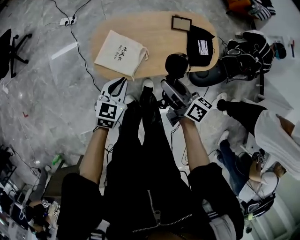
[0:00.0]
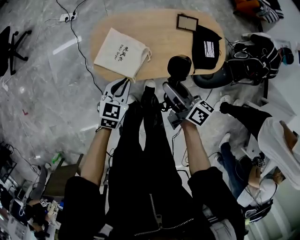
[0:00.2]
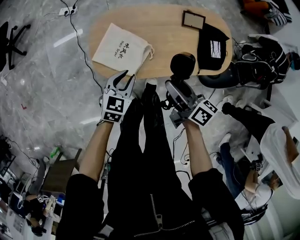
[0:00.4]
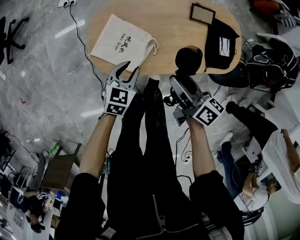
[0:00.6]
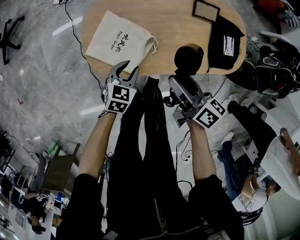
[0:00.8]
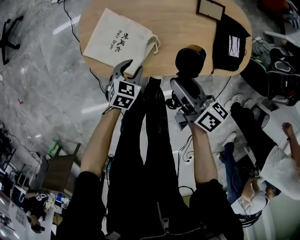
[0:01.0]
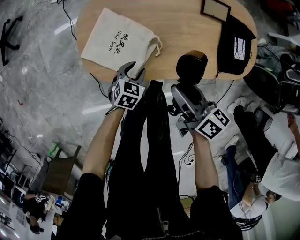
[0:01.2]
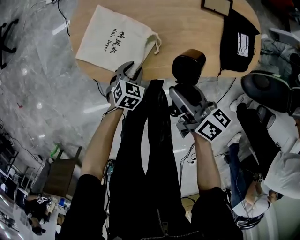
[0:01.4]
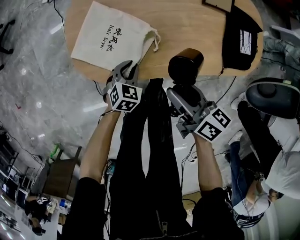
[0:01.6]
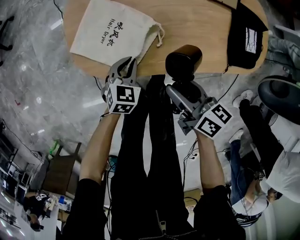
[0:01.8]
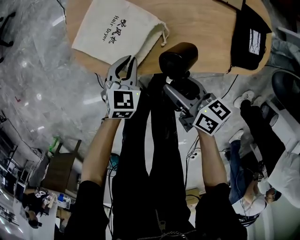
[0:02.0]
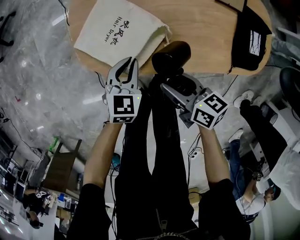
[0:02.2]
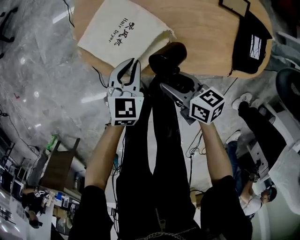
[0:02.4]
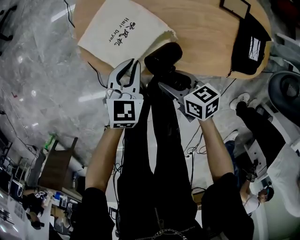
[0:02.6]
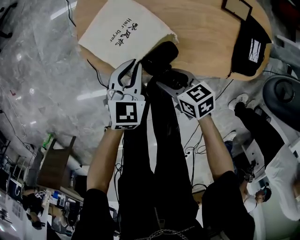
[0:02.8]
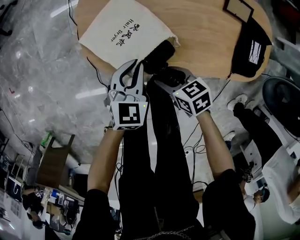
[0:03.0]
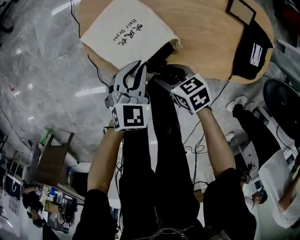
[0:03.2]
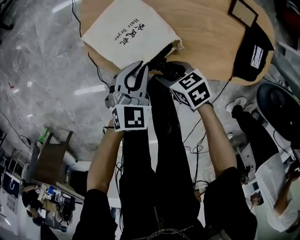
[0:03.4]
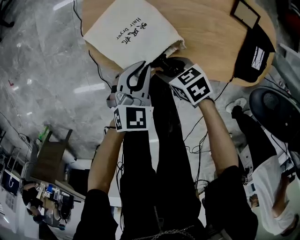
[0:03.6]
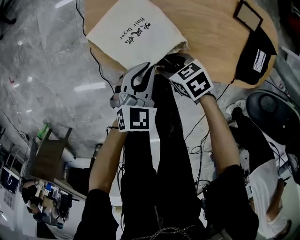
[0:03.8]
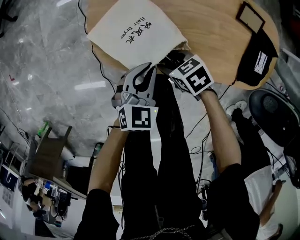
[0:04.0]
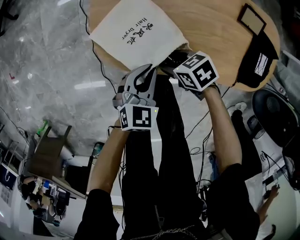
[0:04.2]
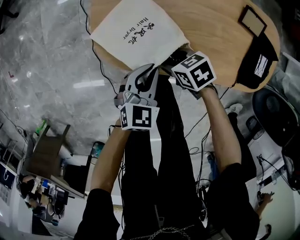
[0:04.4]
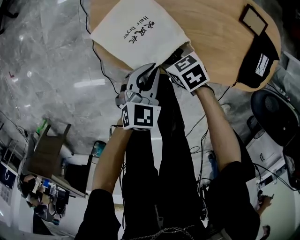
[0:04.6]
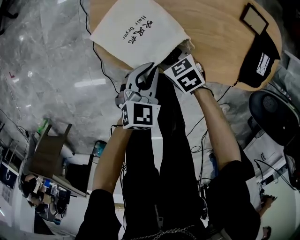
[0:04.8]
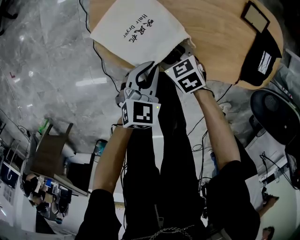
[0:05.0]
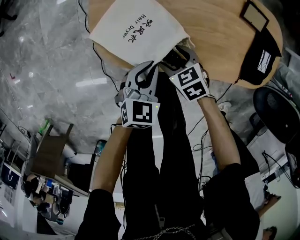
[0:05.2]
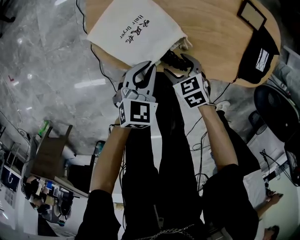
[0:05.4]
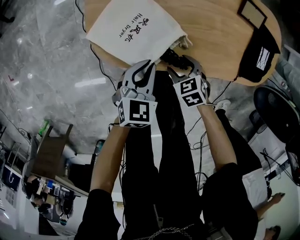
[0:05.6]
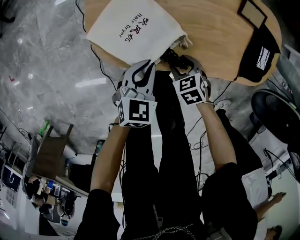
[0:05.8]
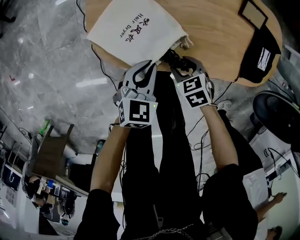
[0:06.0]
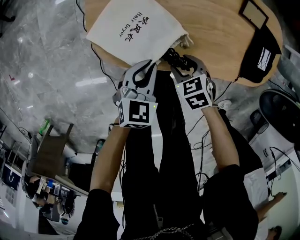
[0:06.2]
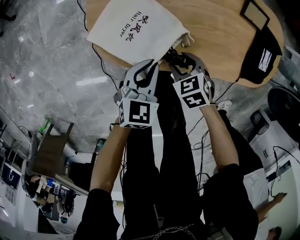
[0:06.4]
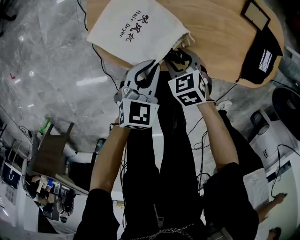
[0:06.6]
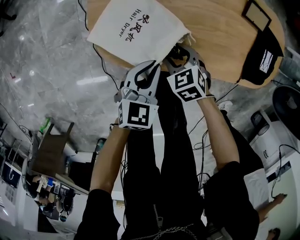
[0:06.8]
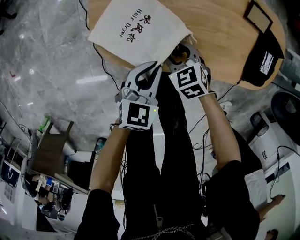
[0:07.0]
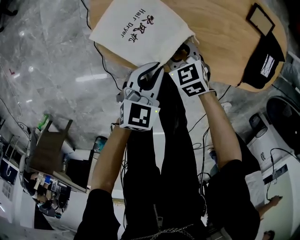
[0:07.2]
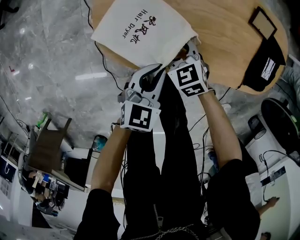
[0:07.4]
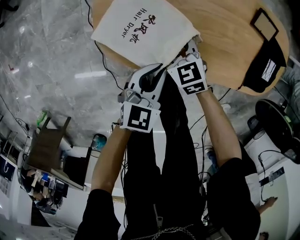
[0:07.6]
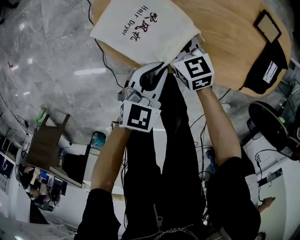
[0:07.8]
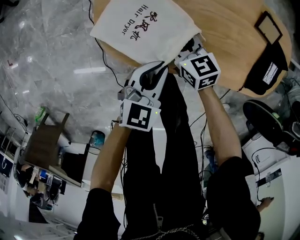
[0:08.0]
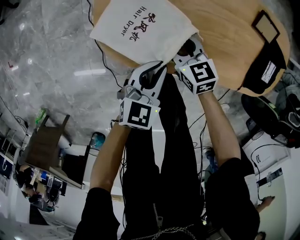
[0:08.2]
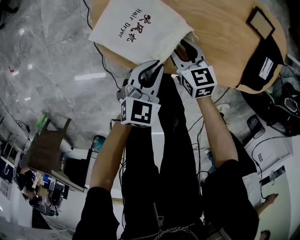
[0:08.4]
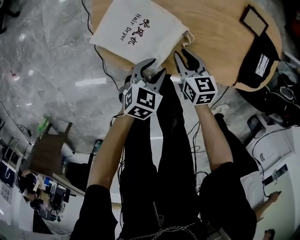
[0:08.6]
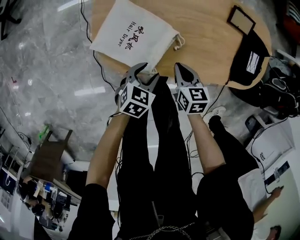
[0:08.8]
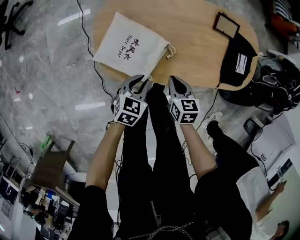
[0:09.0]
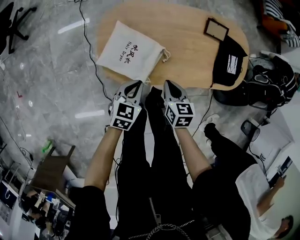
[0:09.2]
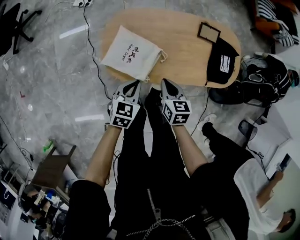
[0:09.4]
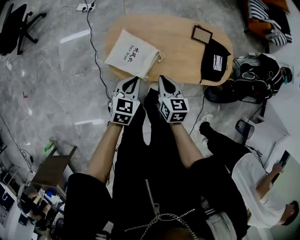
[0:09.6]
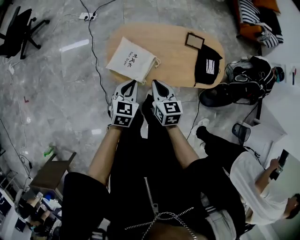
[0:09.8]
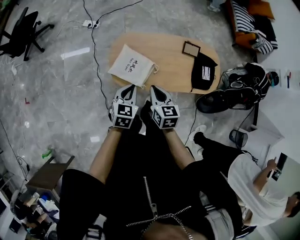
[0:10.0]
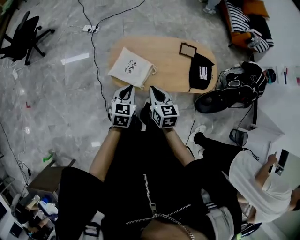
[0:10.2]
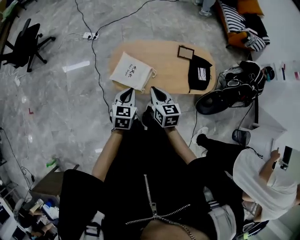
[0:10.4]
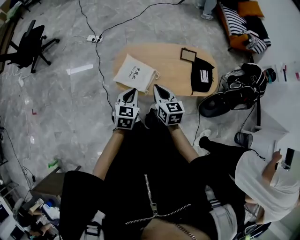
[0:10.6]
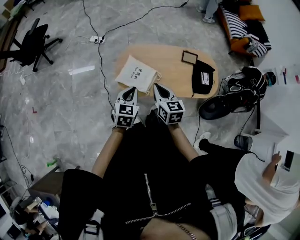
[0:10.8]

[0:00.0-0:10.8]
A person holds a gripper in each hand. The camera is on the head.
0:00.0 to 0:01.6: Both grippers move downward, about 35 cm. The left gripper rotates roughly 30 degrees.
0:01.6 to 0:03.0: The left gripper is displaced upward by roughly 10 cm, and turns by approximately 20 degrees; the right gripper goes some 10 cm downward, and turns by about 50 degrees.
0:03.0 to 0:04.6: The right gripper shifts approximately 10 cm forward.
0:04.6 to 0:06.2: The right gripper is displaced to the right and backward by about 10 cm.
0:06.2 to 0:07.8: The right gripper goes roughly 15 cm forward and to the left, and points its fingers approximately 30 degrees further upward.
0:07.8 to 0:09.2: The left gripper travels upward by some 10 cm, and opens, then closes once more; the right gripper travels upward, backward and to the right by approximately 20 cm, changes its angle by approximately 30 degrees, and closes.
0:09.2 to 0:10.8: The two grippers go some 25 cm upward. The right gripper rotates about 20 degrees.

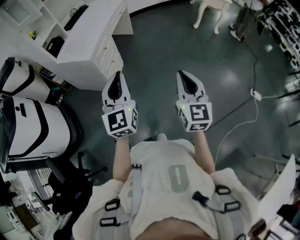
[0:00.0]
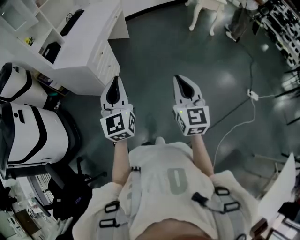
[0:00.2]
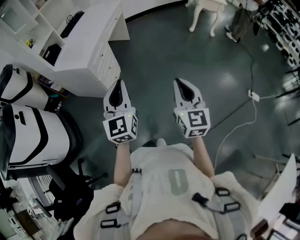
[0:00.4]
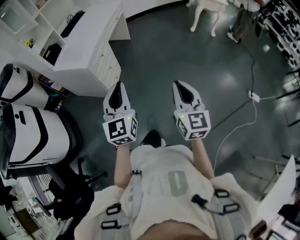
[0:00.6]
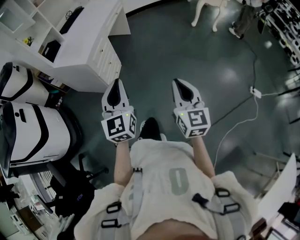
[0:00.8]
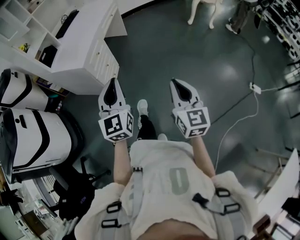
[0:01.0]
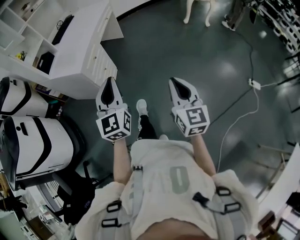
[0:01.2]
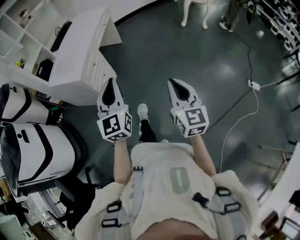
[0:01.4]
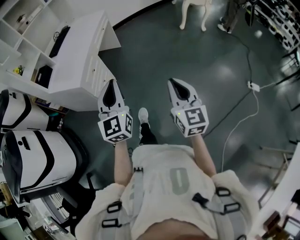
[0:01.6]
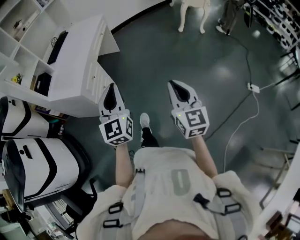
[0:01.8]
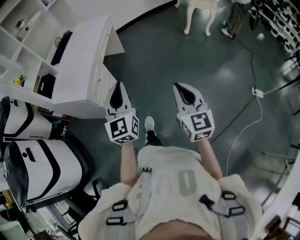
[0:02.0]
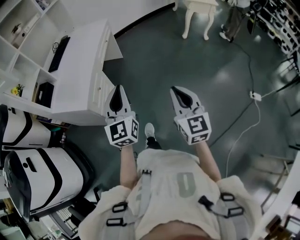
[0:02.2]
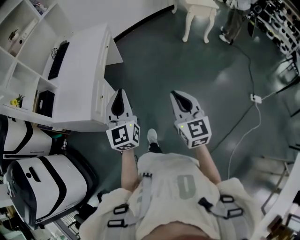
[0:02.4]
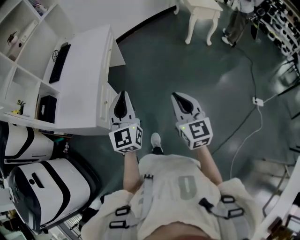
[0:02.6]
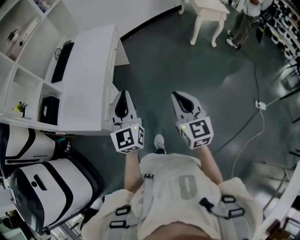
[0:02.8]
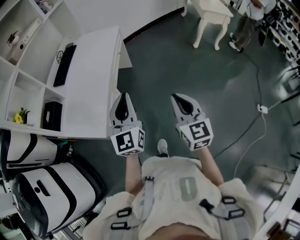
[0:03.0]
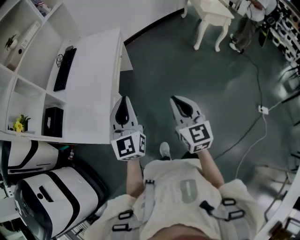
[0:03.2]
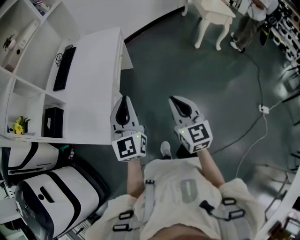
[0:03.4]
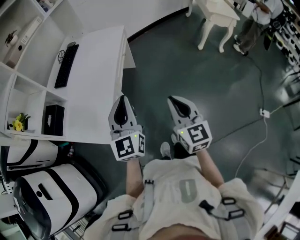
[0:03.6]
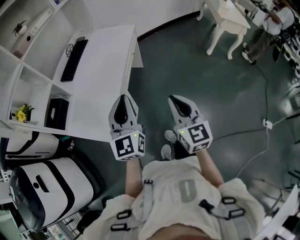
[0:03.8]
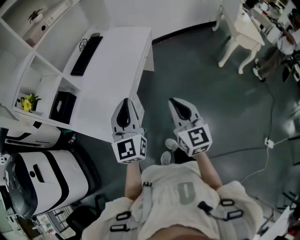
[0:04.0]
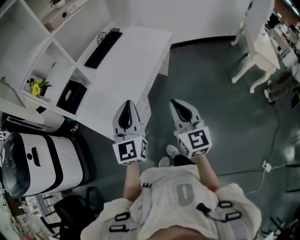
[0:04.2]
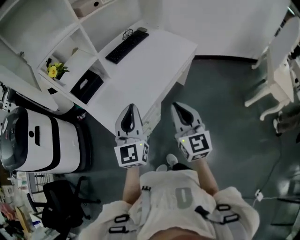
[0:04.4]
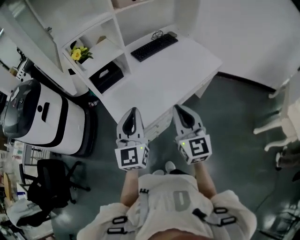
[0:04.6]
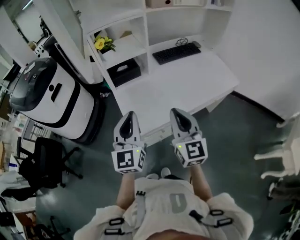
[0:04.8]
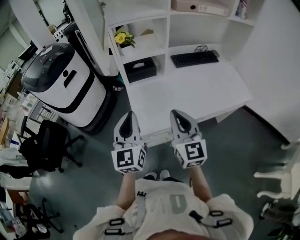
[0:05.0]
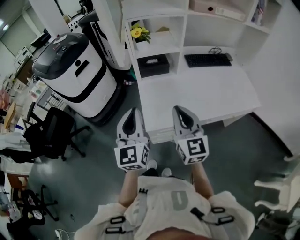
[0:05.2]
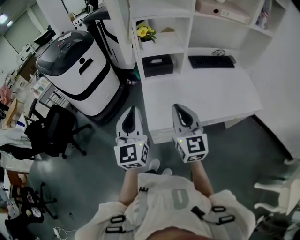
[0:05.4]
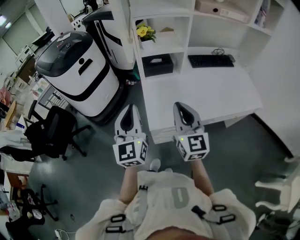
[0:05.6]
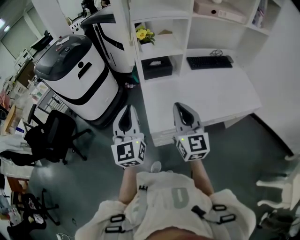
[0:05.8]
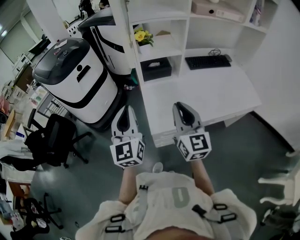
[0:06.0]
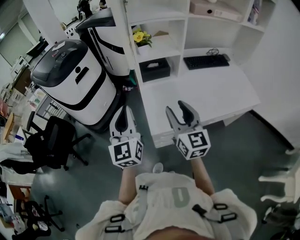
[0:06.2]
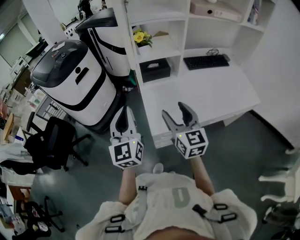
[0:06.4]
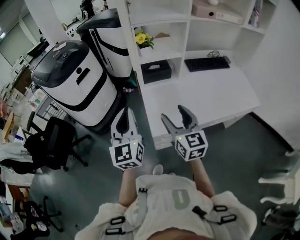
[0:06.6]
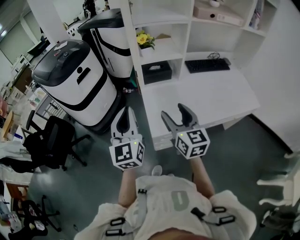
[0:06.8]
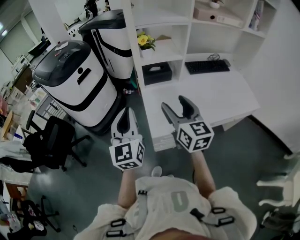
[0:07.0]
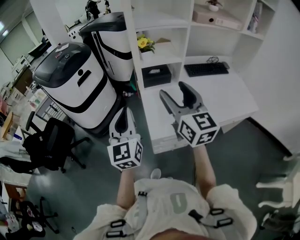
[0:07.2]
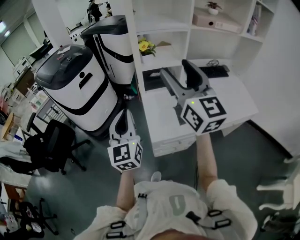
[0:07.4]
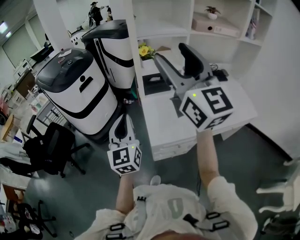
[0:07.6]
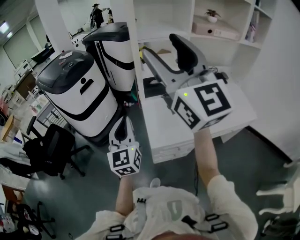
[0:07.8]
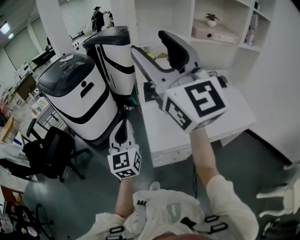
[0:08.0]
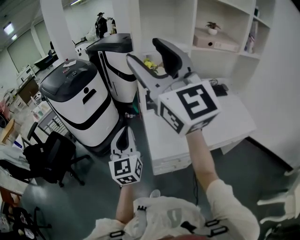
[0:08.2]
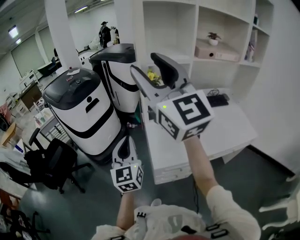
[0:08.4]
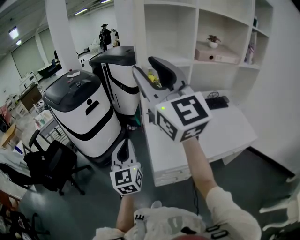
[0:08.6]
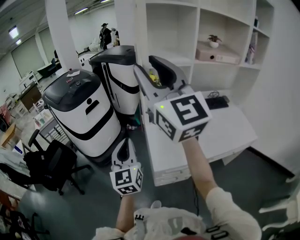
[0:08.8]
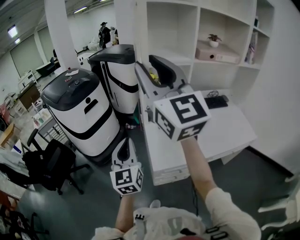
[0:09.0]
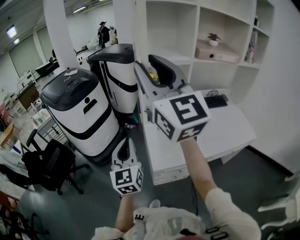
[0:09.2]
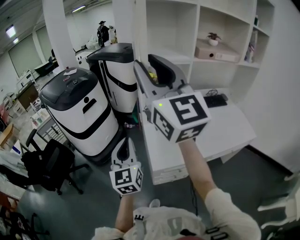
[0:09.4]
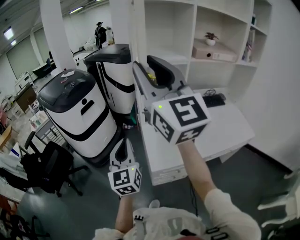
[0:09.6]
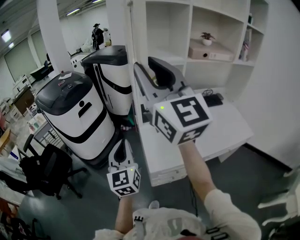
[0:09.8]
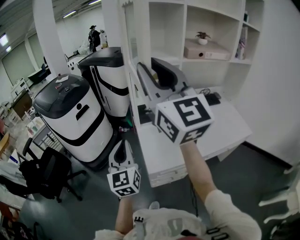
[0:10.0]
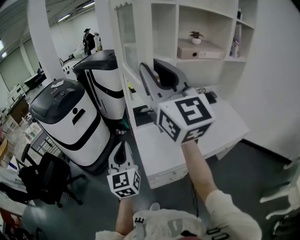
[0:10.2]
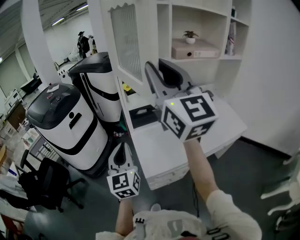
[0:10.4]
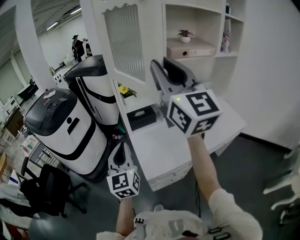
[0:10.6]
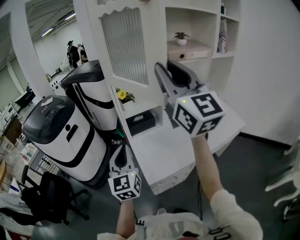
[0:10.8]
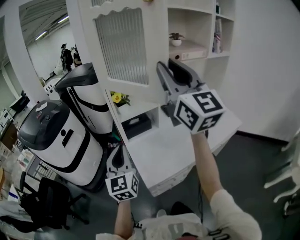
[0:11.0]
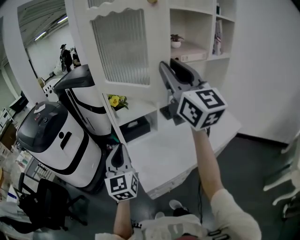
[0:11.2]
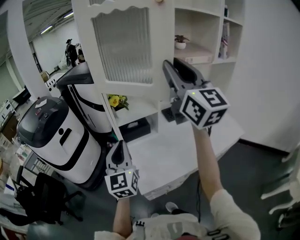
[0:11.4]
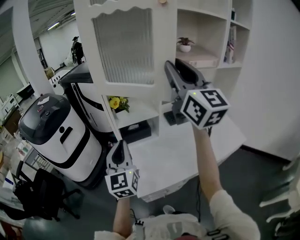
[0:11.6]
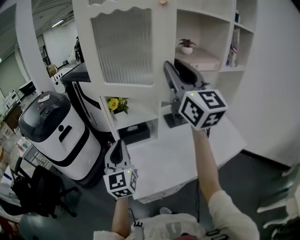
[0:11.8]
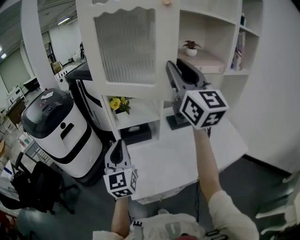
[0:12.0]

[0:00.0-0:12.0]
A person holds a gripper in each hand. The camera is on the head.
0:00.0 to 0:01.6: Both grippers travel together forward, about 10 cm.
0:01.6 to 0:03.0: The right gripper is displaced forward and to the left by roughly 35 cm, while the left gripper is displaced forward by some 30 cm.
0:03.0 to 0:04.4: The left gripper shifts by about 15 cm, and turns by some 30 degrees. The right gripper ends up roughly 25 cm from where it was, and rotates roughly 40 degrees.
0:04.4 to 0:06.0: The right gripper ends up roughly 20 cm from where it was, and changes its angle by roughly 40 degrees; the left gripper shifts by some 25 cm, and swivels roughly 40 degrees.
0:06.0 to 0:07.6: The right gripper shifts some 25 cm upward, turns by approximately 20 degrees, and opens up.
0:07.6 to 0:09.0: The right gripper moves to the left and upward, roughly 10 cm, and closes.
0:09.0 to 0:10.4: The left gripper heads to the right, covering approximately 5 cm. Meanwhile the right gripper travels to the right by some 10 cm.
0:10.4 to 0:12.0: The left gripper moves forward and to the right, roughly 15 cm. Meanwhile the right gripper shifts some 20 cm to the right and forward.

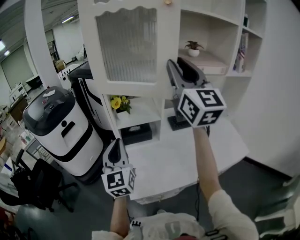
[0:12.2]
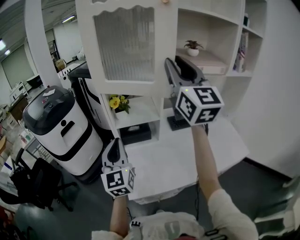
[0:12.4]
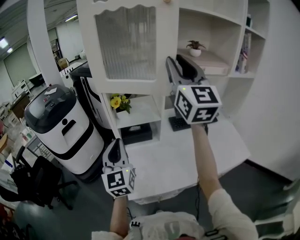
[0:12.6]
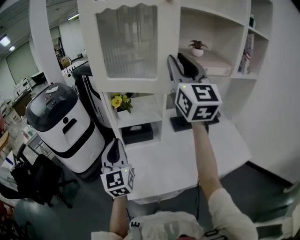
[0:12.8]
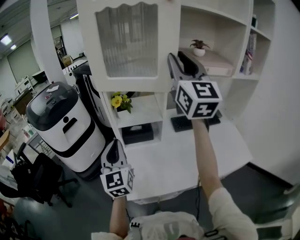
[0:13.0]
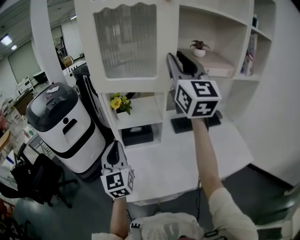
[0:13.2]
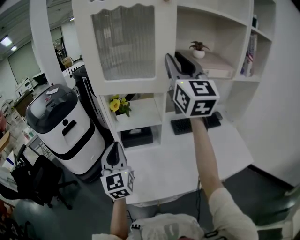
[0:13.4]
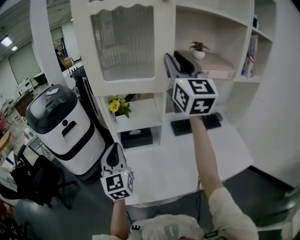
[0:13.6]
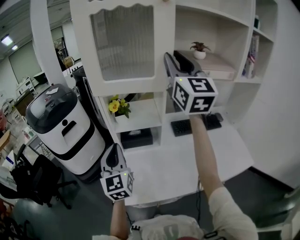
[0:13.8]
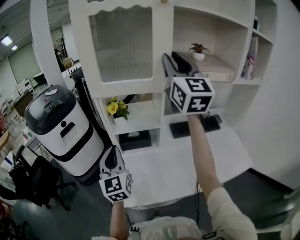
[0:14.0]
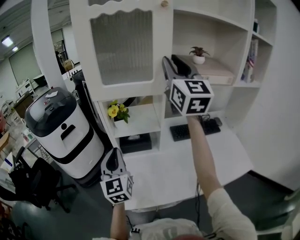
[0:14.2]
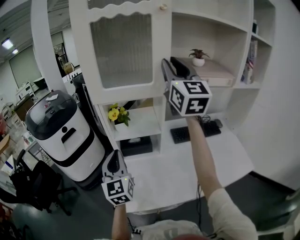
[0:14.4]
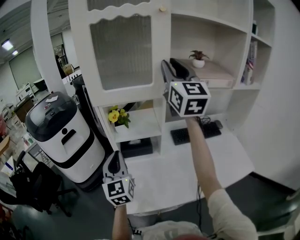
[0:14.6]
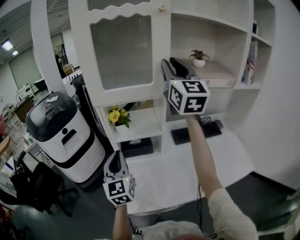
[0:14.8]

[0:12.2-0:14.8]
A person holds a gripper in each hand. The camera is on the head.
0:12.2 to 0:13.4: The right gripper heads forward, covering approximately 5 cm.
0:13.4 to 0:14.8: The right gripper heads forward, covering some 5 cm.
